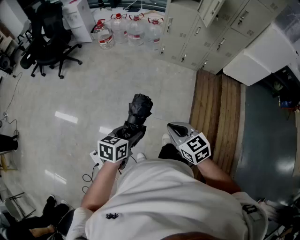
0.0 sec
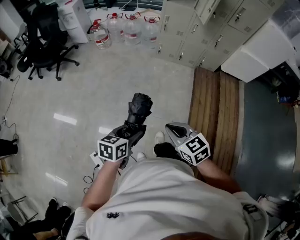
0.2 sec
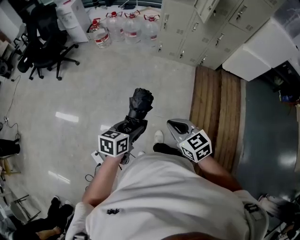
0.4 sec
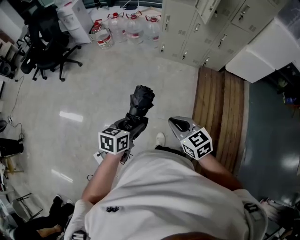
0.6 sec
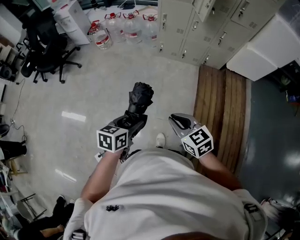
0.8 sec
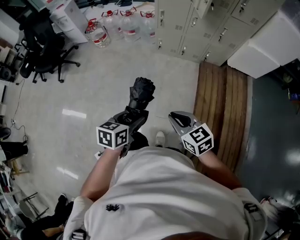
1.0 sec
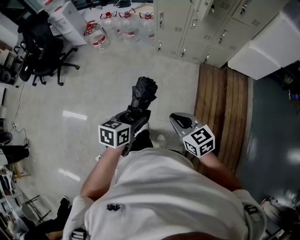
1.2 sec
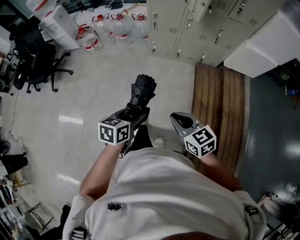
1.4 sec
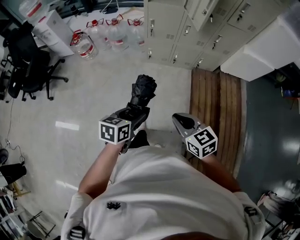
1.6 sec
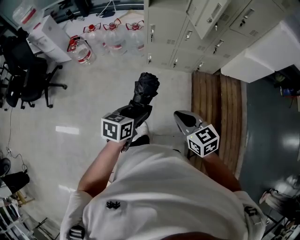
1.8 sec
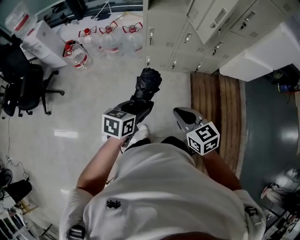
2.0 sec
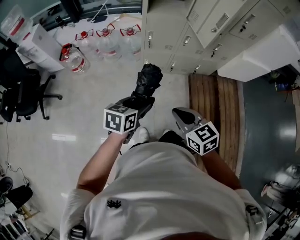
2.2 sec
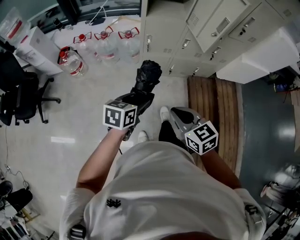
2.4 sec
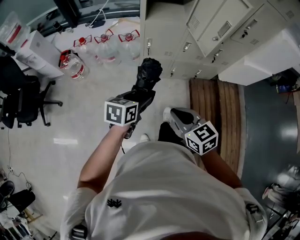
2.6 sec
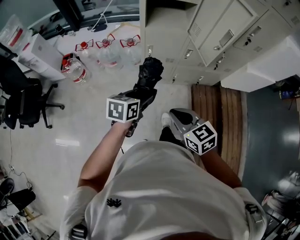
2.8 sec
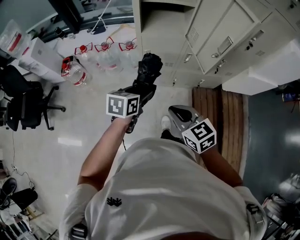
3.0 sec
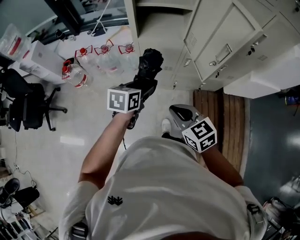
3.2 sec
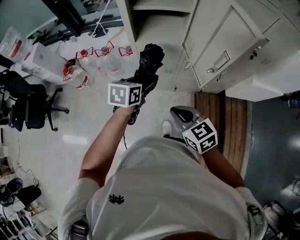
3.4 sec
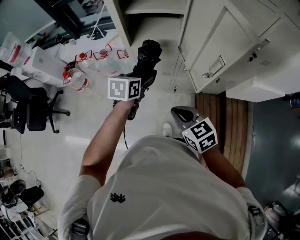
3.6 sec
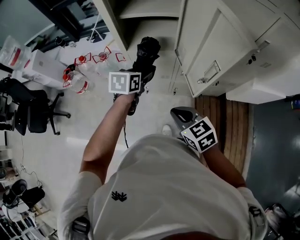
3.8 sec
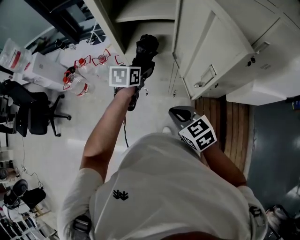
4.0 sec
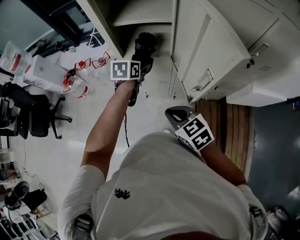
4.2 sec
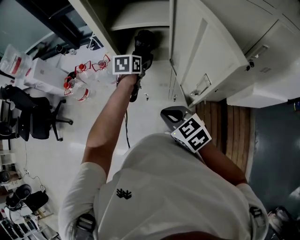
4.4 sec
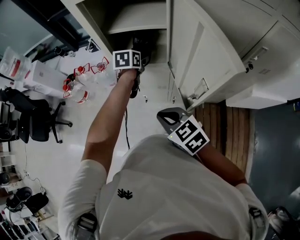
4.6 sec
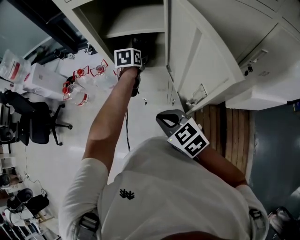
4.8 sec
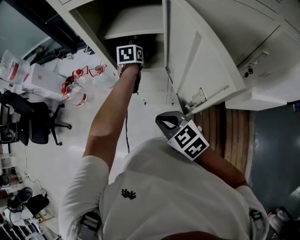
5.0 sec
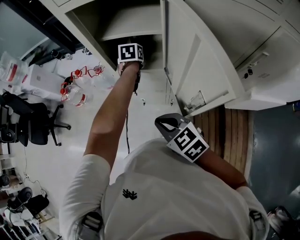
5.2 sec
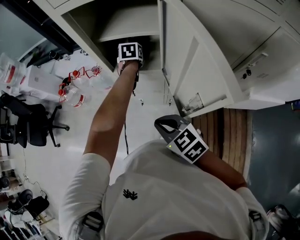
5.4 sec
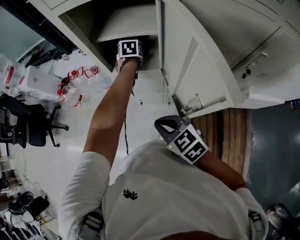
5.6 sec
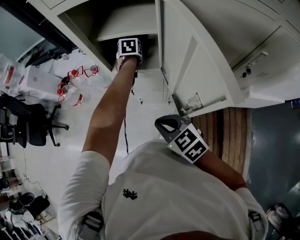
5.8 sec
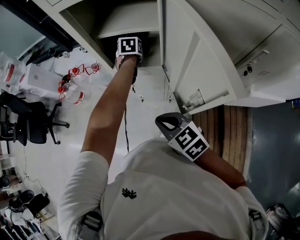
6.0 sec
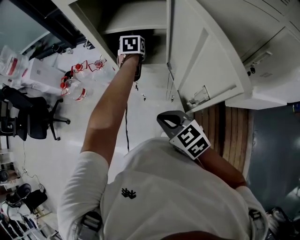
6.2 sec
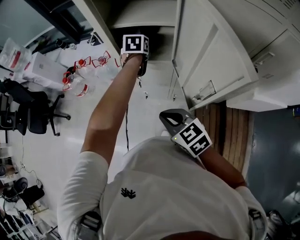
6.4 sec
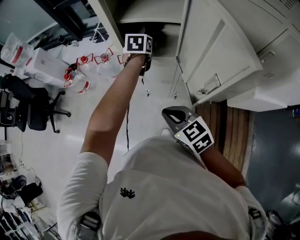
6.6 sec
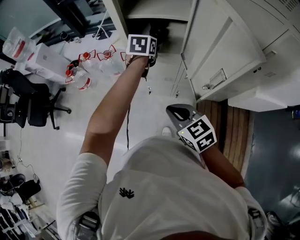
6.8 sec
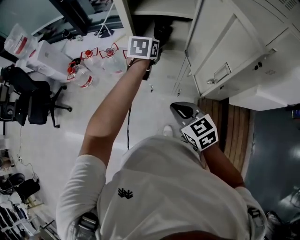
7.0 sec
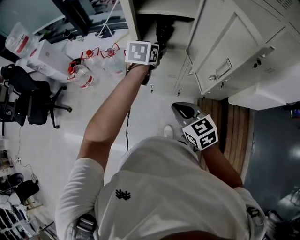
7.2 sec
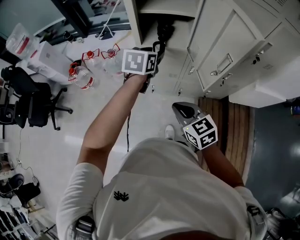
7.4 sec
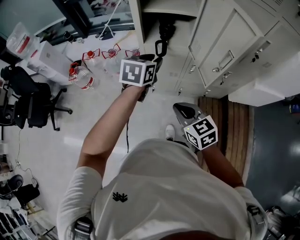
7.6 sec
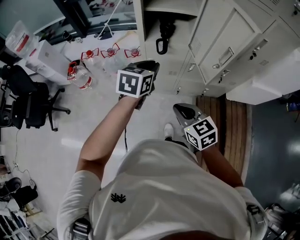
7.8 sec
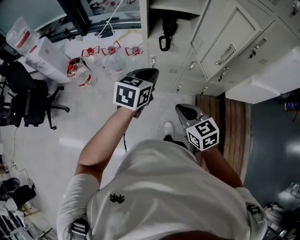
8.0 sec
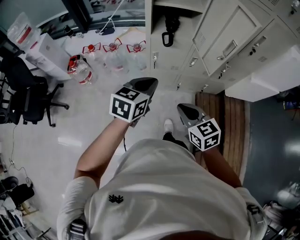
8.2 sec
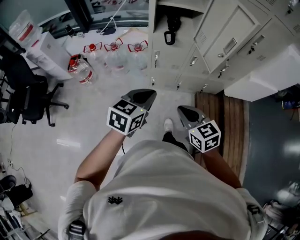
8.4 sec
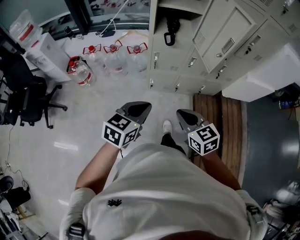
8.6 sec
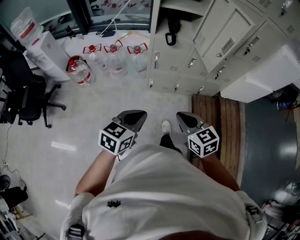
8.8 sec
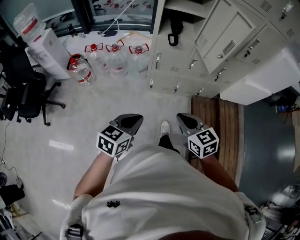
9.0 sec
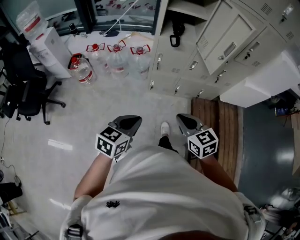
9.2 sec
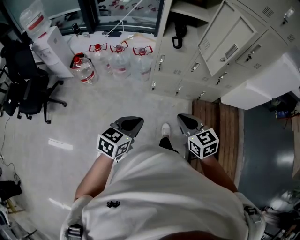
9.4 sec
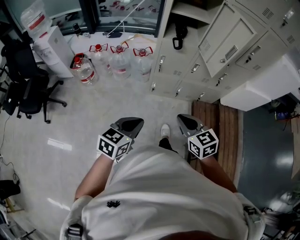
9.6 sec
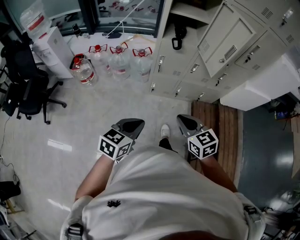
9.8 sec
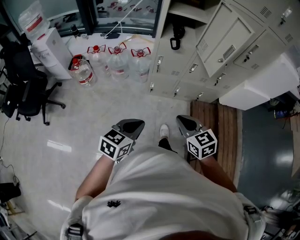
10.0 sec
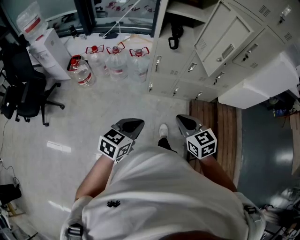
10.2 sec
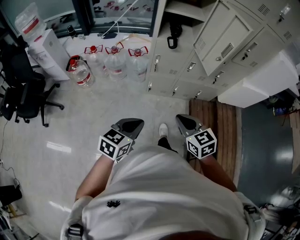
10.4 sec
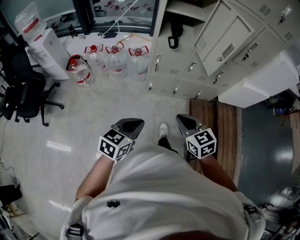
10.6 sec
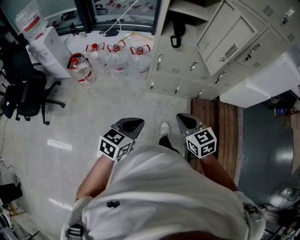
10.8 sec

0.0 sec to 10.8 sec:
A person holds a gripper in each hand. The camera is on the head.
0.0 sec to 1.6 sec: The two grippers go about 30 cm forward.
1.6 sec to 3.0 sec: Both grippers travel together forward, about 35 cm.
3.0 sec to 4.6 sec: The left gripper travels forward by roughly 35 cm. Meanwhile the right gripper heads forward and to the right, covering approximately 20 cm.
4.6 sec to 6.2 sec: The left gripper moves forward, roughly 5 cm.
6.2 sec to 7.8 sec: The left gripper travels backward and to the left by about 30 cm, swivels some 30 degrees, and closes up. Meanwhile the right gripper is displaced backward and to the left by approximately 15 cm.
7.8 sec to 9.2 sec: The left gripper moves backward, about 35 cm; the right gripper travels backward by approximately 15 cm.
9.2 sec to 10.8 sec: There are only small adjustments of the grippers.

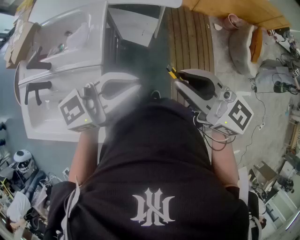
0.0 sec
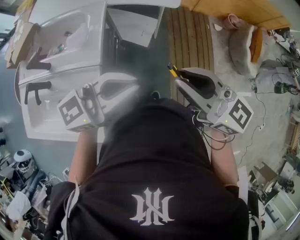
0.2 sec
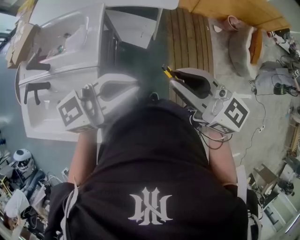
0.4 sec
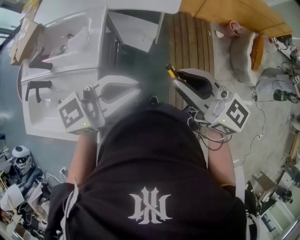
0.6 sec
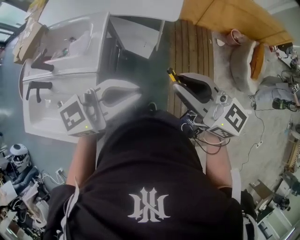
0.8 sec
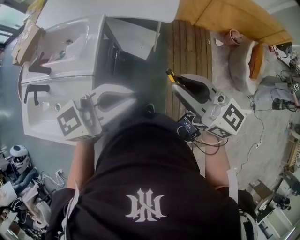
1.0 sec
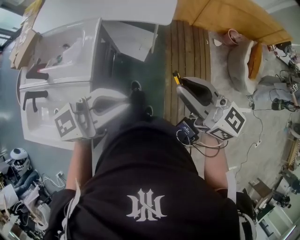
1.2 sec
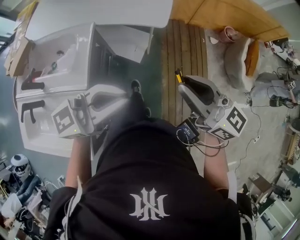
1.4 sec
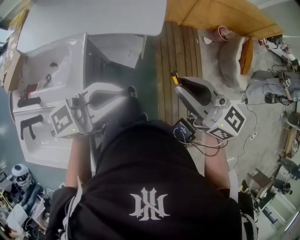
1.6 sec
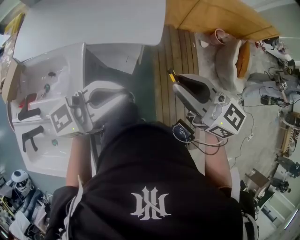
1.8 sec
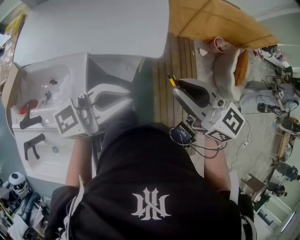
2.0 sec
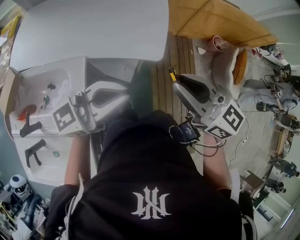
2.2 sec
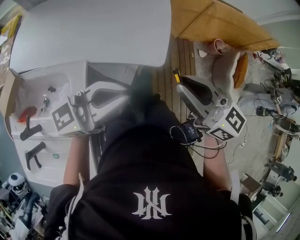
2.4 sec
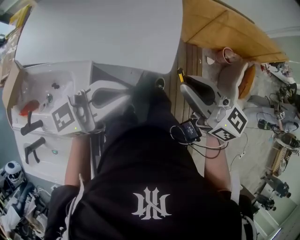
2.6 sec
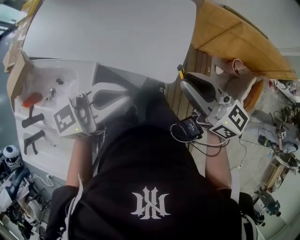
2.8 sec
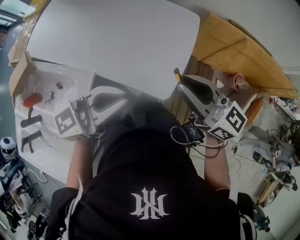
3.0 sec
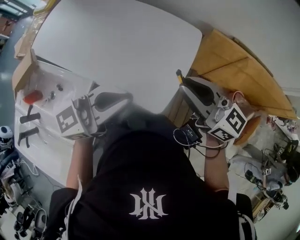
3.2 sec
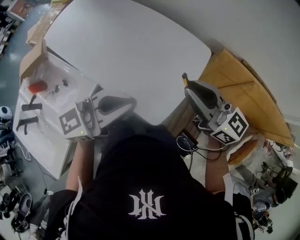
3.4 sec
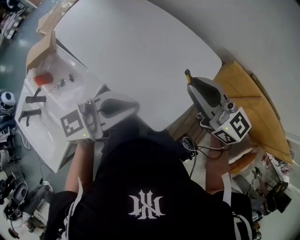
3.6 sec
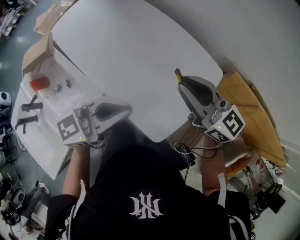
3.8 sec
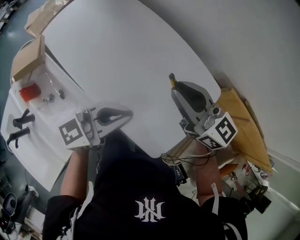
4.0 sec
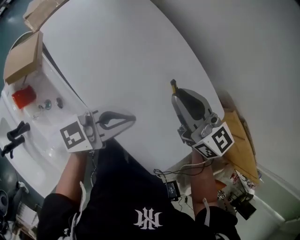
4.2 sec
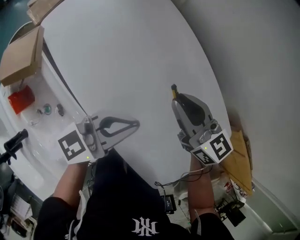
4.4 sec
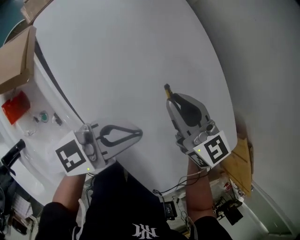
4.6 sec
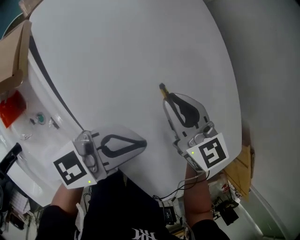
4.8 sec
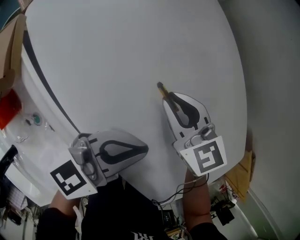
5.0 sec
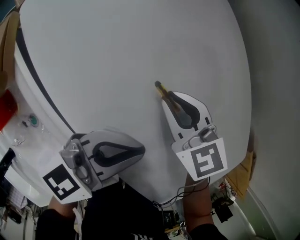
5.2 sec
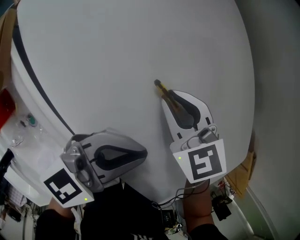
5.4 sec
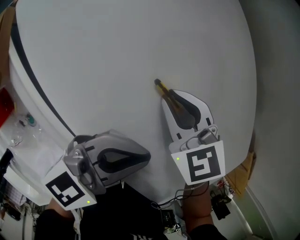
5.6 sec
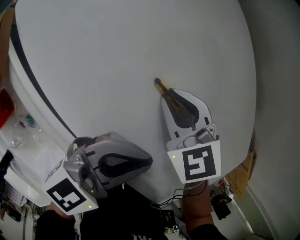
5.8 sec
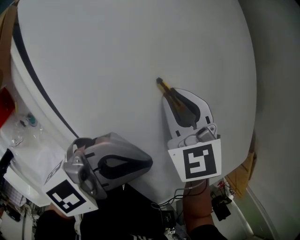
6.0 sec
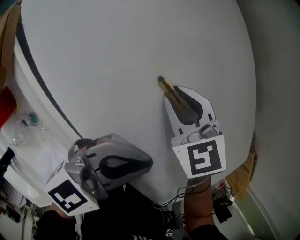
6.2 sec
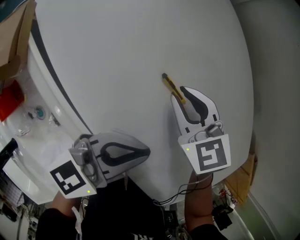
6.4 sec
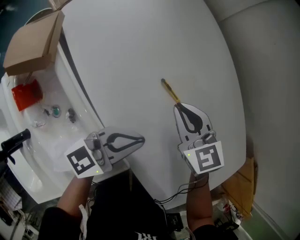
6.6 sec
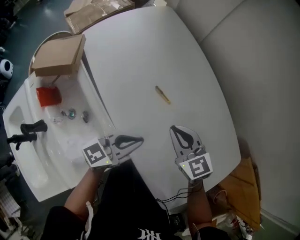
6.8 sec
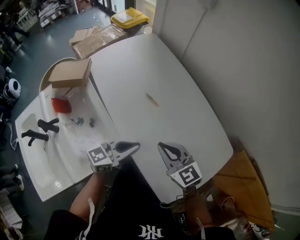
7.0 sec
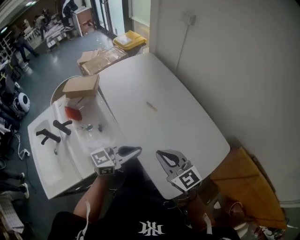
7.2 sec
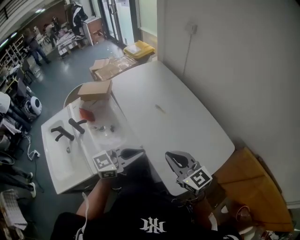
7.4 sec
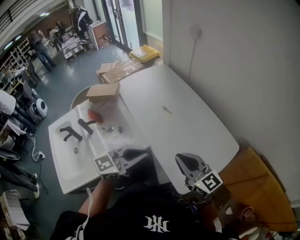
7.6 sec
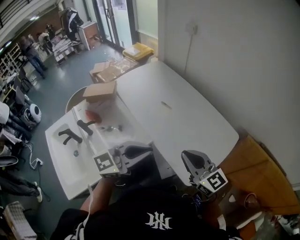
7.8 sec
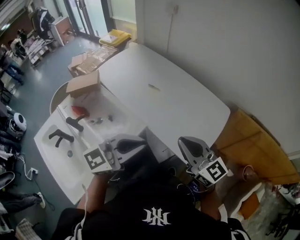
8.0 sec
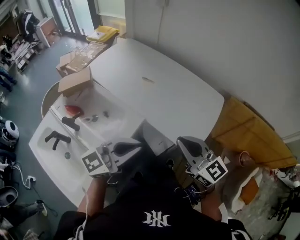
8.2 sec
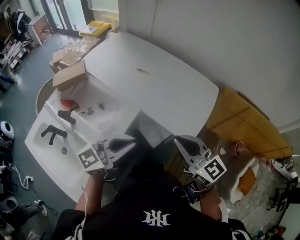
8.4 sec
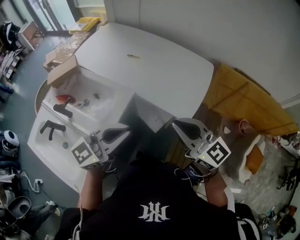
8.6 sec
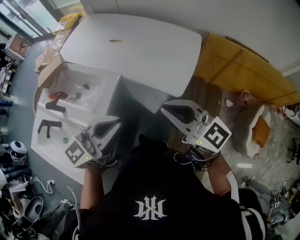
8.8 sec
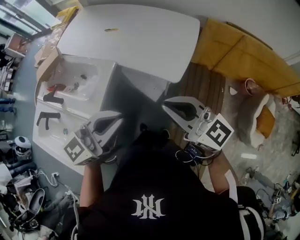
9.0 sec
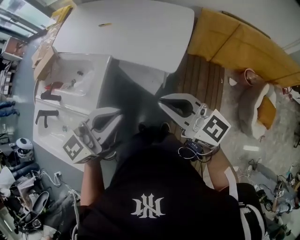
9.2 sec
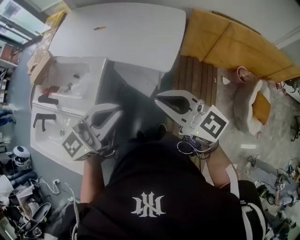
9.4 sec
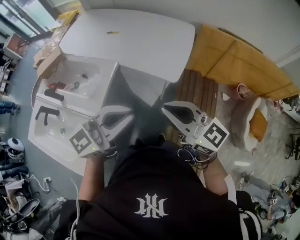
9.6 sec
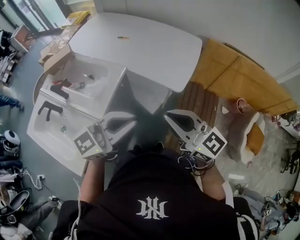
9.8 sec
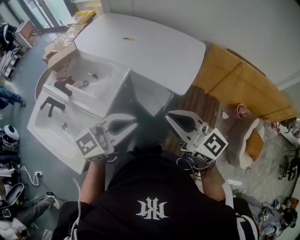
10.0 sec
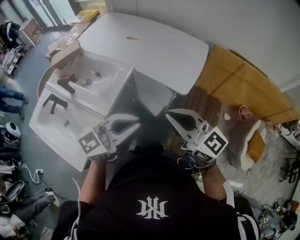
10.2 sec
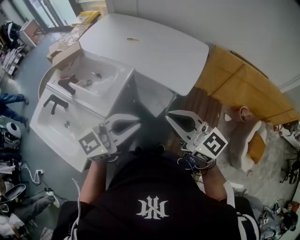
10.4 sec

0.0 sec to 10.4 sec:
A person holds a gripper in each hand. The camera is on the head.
0.0 sec to 1.4 sec: The left gripper changes place by roughly 10 cm. Meanwhile the right gripper ends up about 15 cm from where it was.
1.4 sec to 3.0 sec: The pair of grippers is taken forward, some 40 cm.
3.0 sec to 4.4 sec: The two grippers travel together, forward and to the left, roughly 50 cm. The left gripper heads downward, covering approximately 15 cm, and rotates roughly 30 degrees, while the right gripper changes its angle by some 30 degrees.
4.4 sec to 6.0 sec: The right gripper goes about 25 cm downward and to the left, and tips its fingers downward by some 40 degrees; the left gripper heads downward, covering some 10 cm.
6.0 sec to 7.4 sec: The two grippers go some 50 cm backward and upward. The right gripper tips its fingers upward by roughly 50 degrees.
7.4 sec to 9.0 sec: The grippers both shift backward by approximately 30 cm. The right gripper turns by some 20 degrees. Meanwhile the left gripper turns by some 30 degrees.
9.0 sec to 10.4 sec: The right gripper is displaced backward and to the left by some 10 cm. Meanwhile the left gripper is displaced backward by roughly 10 cm.

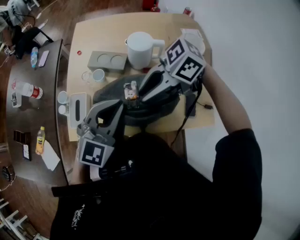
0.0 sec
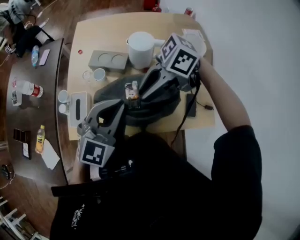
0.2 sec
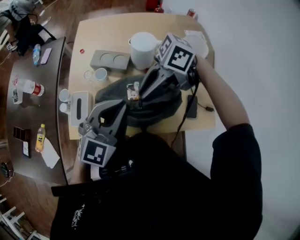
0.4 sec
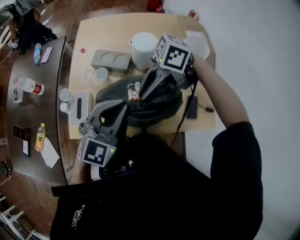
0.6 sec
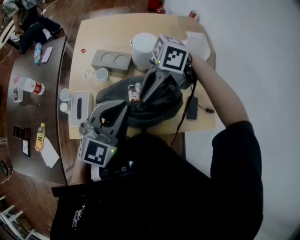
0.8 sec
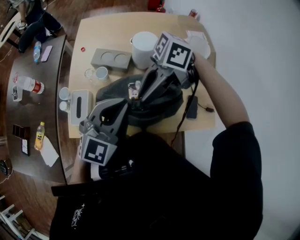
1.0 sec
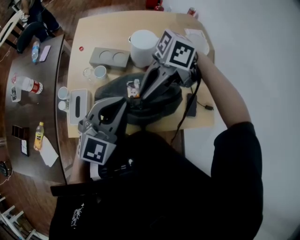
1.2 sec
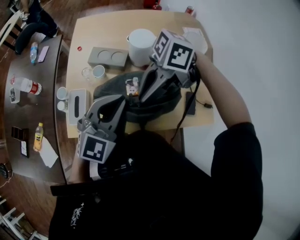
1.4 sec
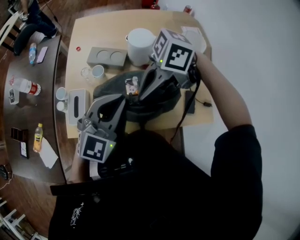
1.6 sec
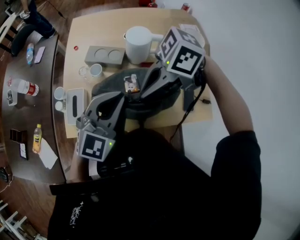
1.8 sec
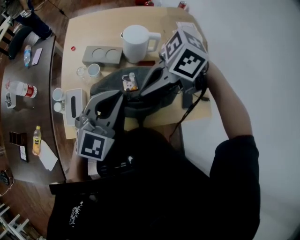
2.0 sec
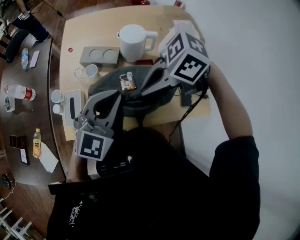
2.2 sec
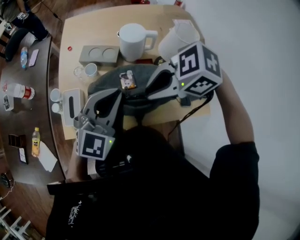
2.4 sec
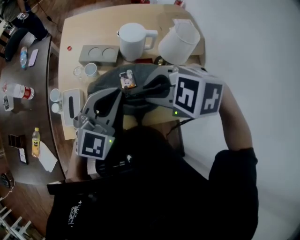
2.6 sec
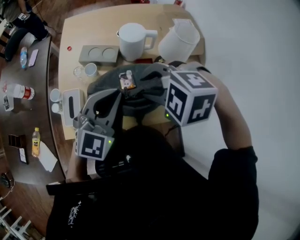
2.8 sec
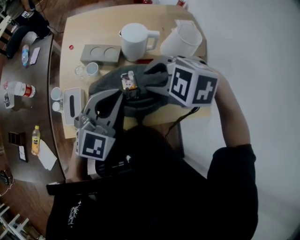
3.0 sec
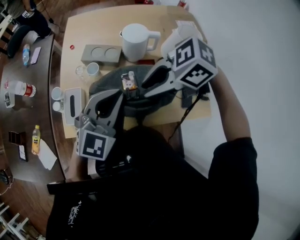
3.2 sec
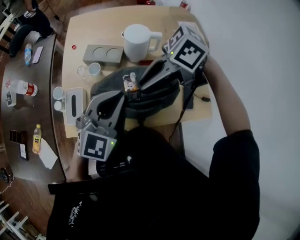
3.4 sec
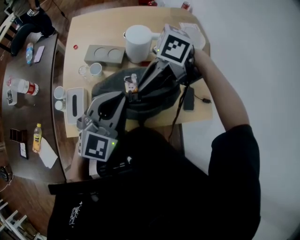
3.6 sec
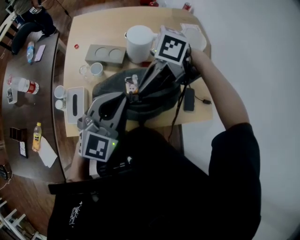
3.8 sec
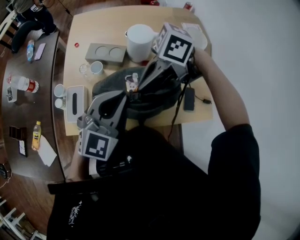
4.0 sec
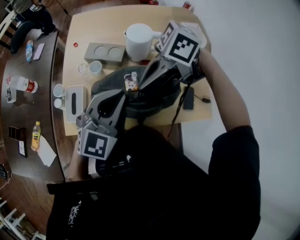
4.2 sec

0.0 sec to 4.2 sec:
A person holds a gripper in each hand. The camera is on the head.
0.0 sec to 1.4 sec: The grippers stay close to where they were, moving slightly.
1.4 sec to 2.8 sec: The right gripper tilts its fingers roughly 40 degrees downward.
2.8 sec to 4.2 sec: The right gripper points its fingers some 30 degrees further upward, and closes.
